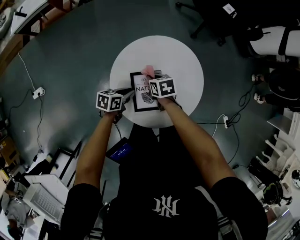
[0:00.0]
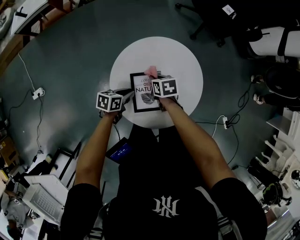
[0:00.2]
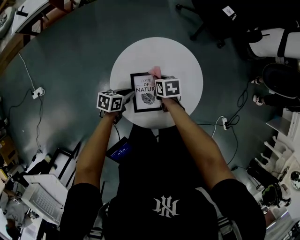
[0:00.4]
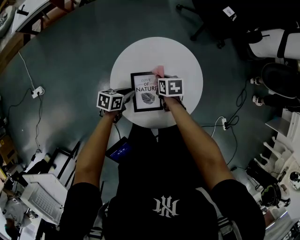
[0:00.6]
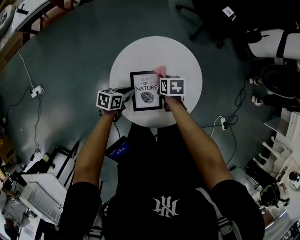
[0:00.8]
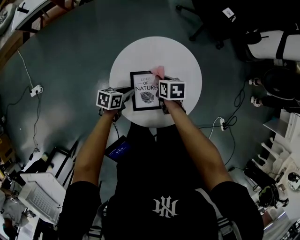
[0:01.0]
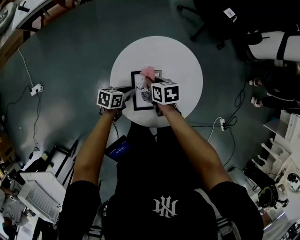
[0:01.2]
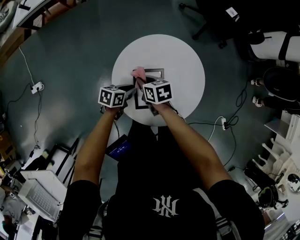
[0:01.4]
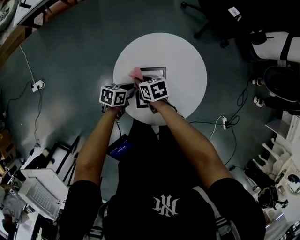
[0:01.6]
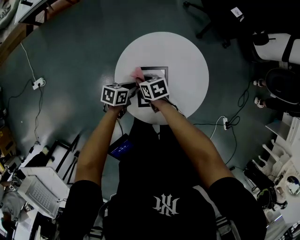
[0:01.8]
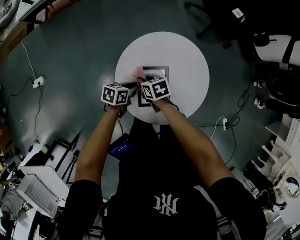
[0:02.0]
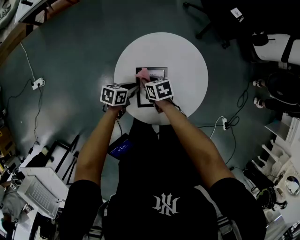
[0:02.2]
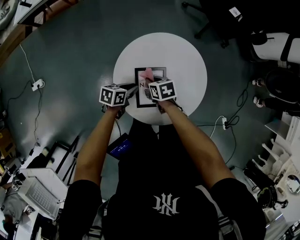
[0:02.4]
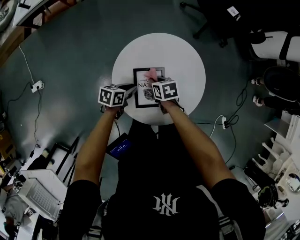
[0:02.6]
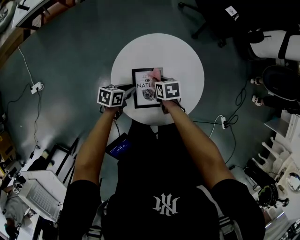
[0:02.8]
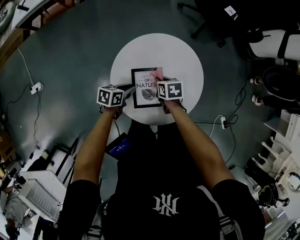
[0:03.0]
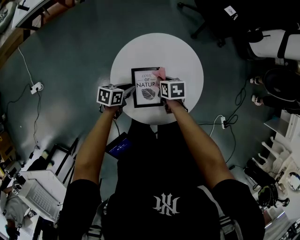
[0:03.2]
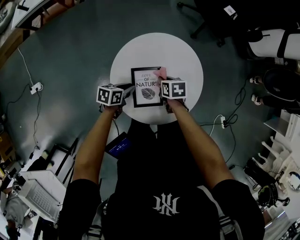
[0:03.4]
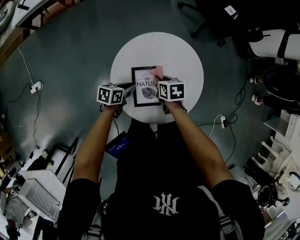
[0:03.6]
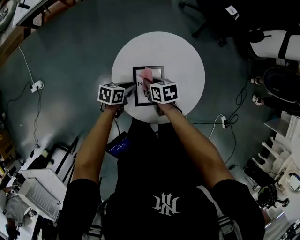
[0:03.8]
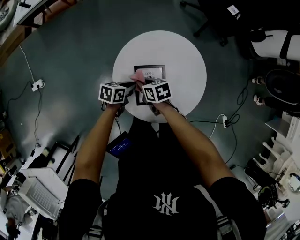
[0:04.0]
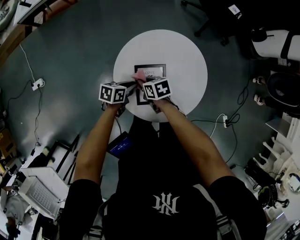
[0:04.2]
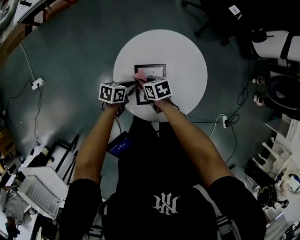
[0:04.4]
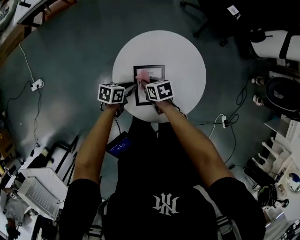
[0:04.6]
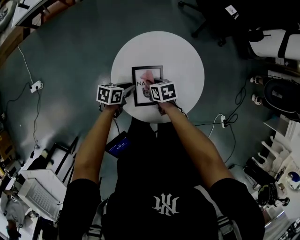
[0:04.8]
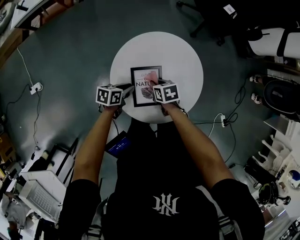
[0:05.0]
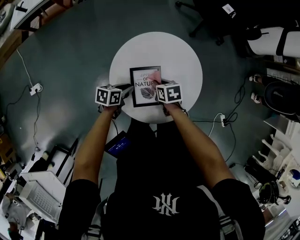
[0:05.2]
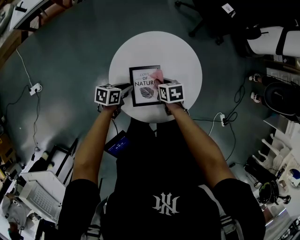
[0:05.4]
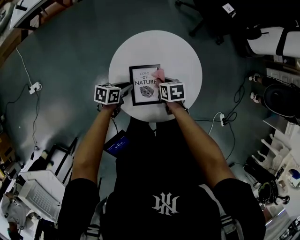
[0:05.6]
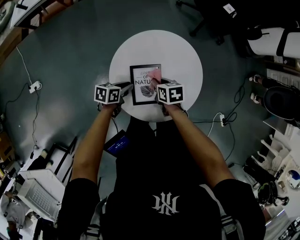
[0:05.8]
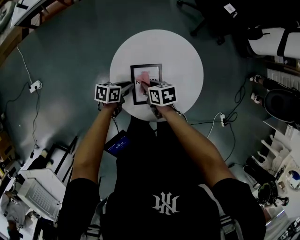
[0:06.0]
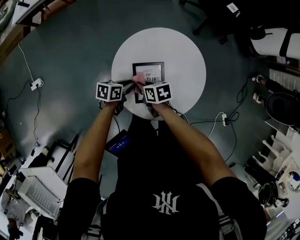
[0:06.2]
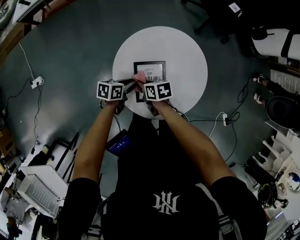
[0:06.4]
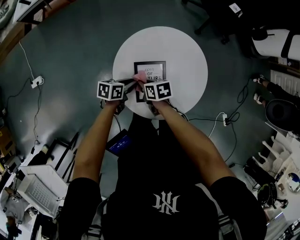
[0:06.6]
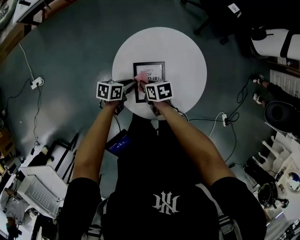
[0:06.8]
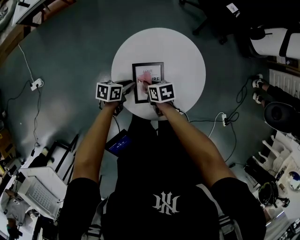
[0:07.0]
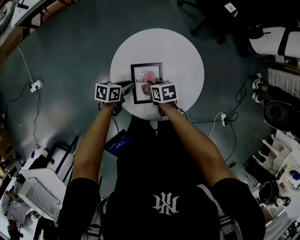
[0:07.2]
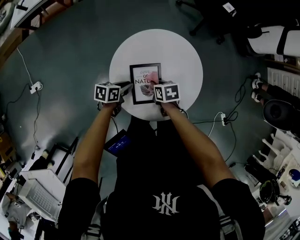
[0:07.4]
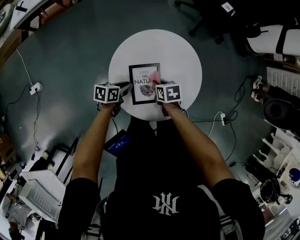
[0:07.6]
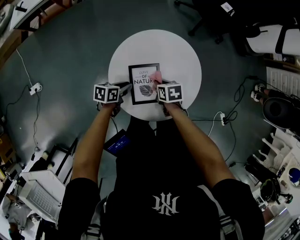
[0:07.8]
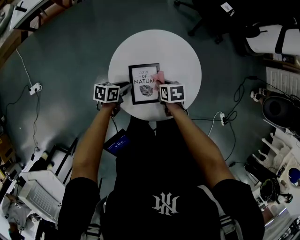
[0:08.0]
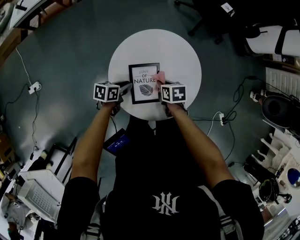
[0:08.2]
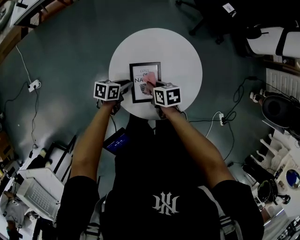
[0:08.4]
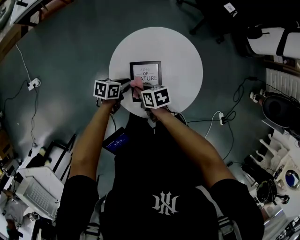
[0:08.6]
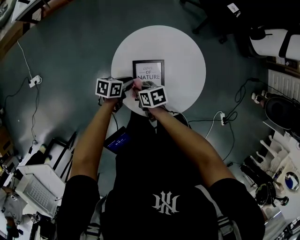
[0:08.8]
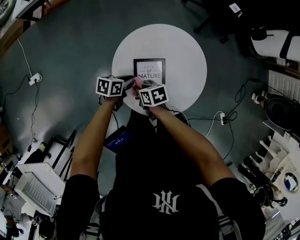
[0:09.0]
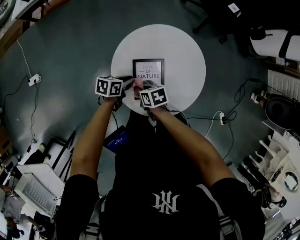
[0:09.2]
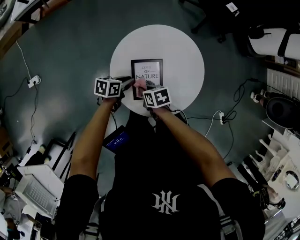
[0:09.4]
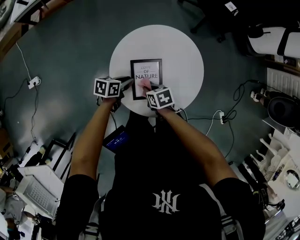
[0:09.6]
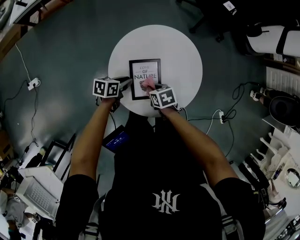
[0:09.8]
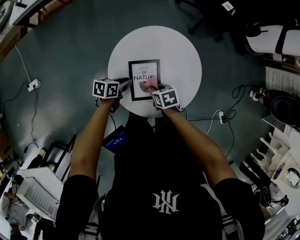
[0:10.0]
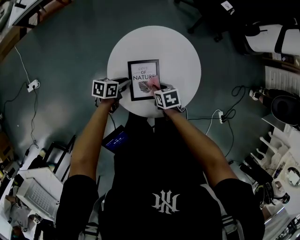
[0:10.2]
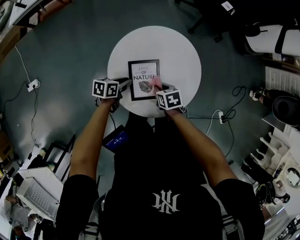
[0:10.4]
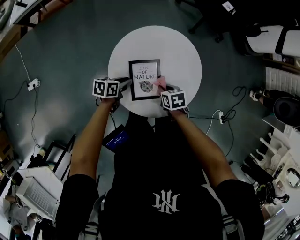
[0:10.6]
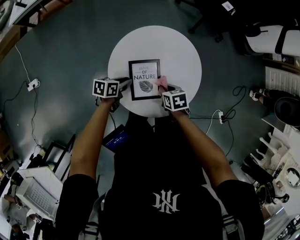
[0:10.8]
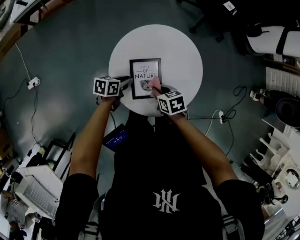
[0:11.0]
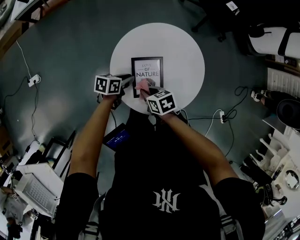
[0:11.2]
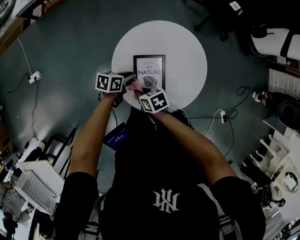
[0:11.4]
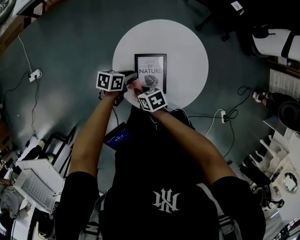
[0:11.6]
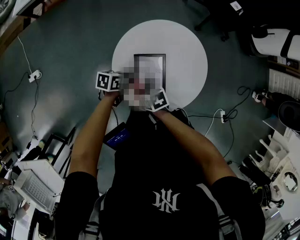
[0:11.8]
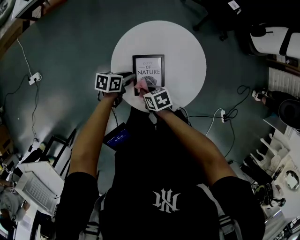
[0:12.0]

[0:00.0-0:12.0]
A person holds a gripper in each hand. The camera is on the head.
0:00.0 to 0:01.6: The right gripper ends up roughly 10 cm from where it was.
0:01.6 to 0:03.0: The right gripper ends up roughly 10 cm from where it was.
0:03.0 to 0:04.4: The right gripper moves approximately 10 cm.
0:06.0 to 0:07.6: The right gripper changes place by approximately 5 cm.
0:07.6 to 0:09.0: The right gripper changes place by some 10 cm.
0:09.0 to 0:10.4: The right gripper changes place by approximately 15 cm.
0:10.4 to 0:12.0: The right gripper shifts by some 10 cm.

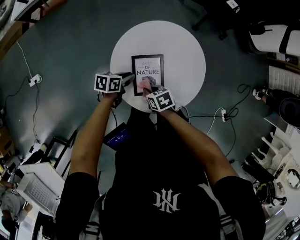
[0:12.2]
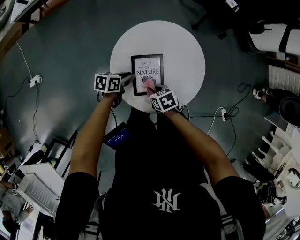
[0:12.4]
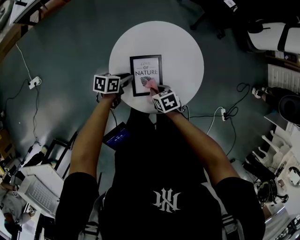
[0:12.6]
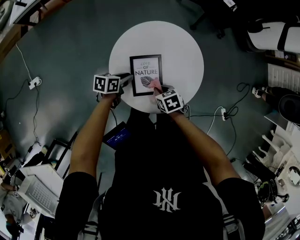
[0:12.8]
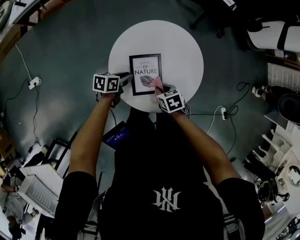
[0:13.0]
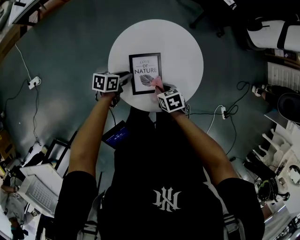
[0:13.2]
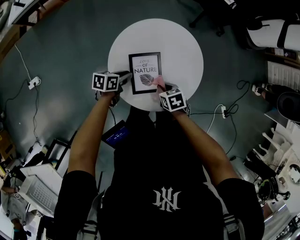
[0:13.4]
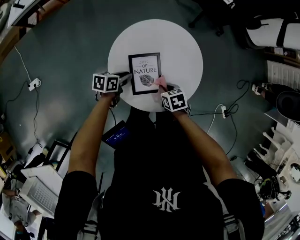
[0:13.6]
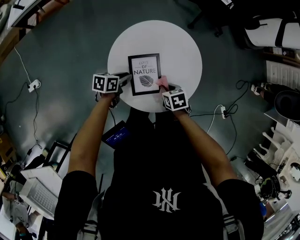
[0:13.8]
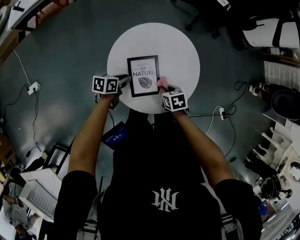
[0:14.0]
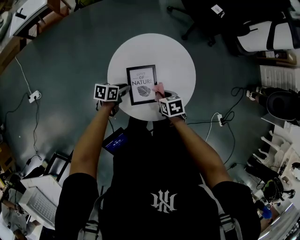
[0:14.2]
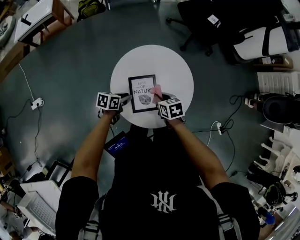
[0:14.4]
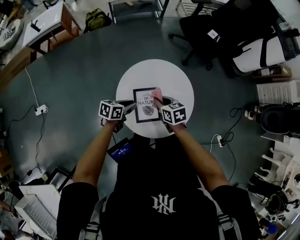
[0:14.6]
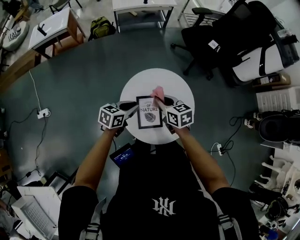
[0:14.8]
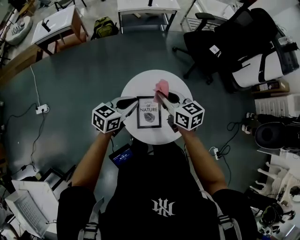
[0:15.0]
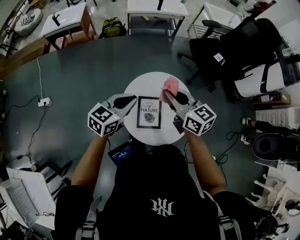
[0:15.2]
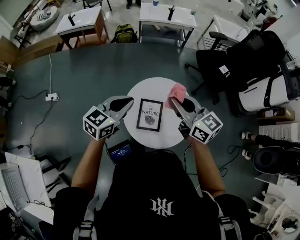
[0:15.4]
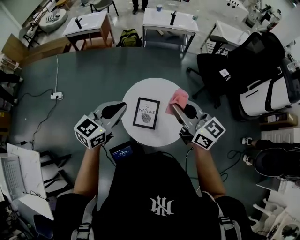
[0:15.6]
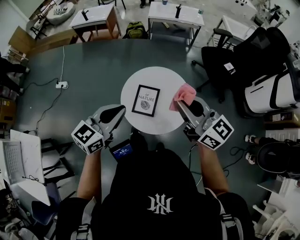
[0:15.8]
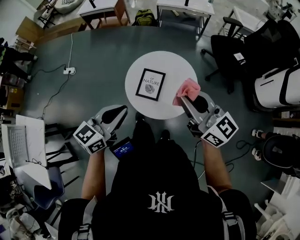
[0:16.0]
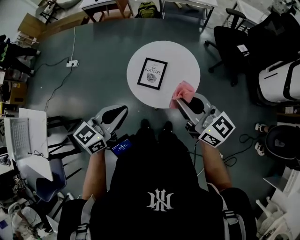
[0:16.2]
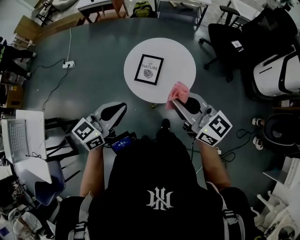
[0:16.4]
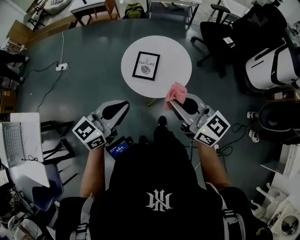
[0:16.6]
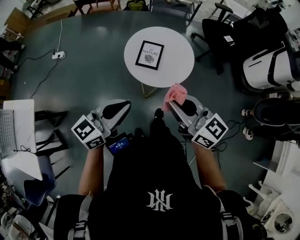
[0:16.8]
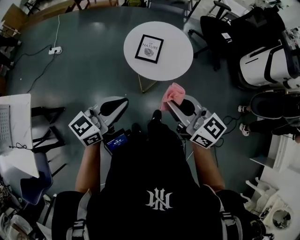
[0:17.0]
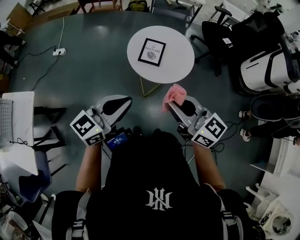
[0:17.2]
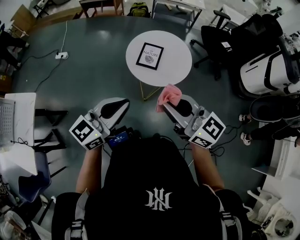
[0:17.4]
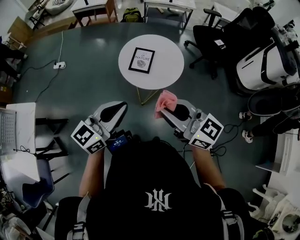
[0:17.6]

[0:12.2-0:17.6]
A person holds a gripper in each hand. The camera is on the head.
0:12.2 to 0:13.6: The right gripper ends up about 10 cm from where it was.
0:13.6 to 0:15.0: Both grippers travel together upward, roughly 30 cm. The right gripper angles its fingers upward, by roughly 40 degrees. Meanwhile the left gripper changes its angle by roughly 40 degrees.
0:15.0 to 0:16.2: The left gripper ends up about 35 cm from where it was, and swivels about 30 degrees, while the right gripper changes place by roughly 35 cm, and rotates some 40 degrees.
0:16.2 to 0:17.6: Both grippers travel together backward, approximately 20 cm.

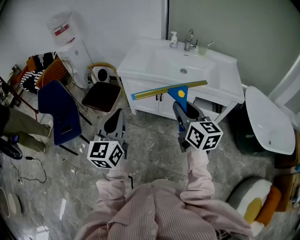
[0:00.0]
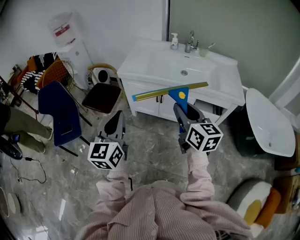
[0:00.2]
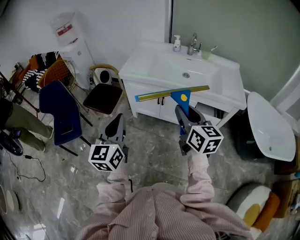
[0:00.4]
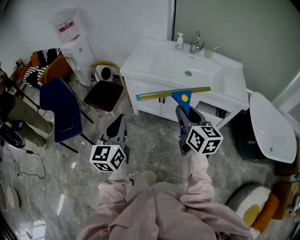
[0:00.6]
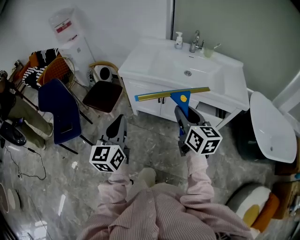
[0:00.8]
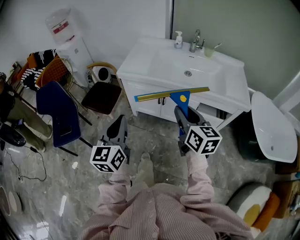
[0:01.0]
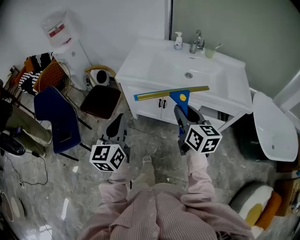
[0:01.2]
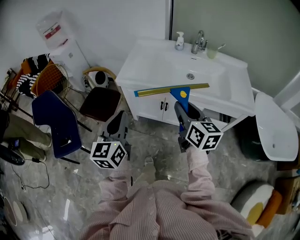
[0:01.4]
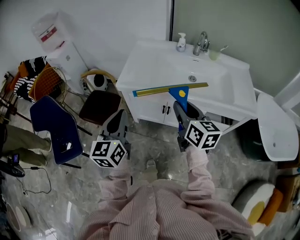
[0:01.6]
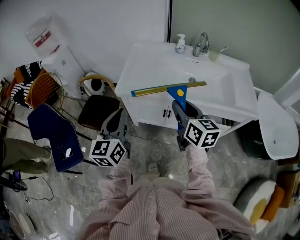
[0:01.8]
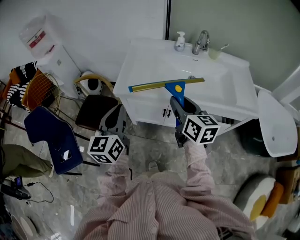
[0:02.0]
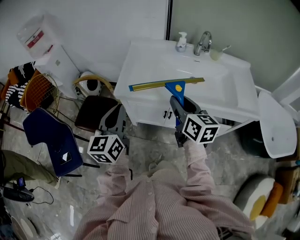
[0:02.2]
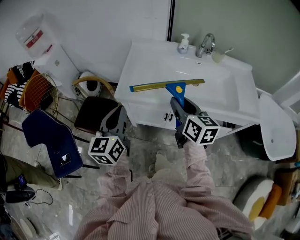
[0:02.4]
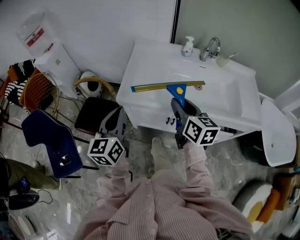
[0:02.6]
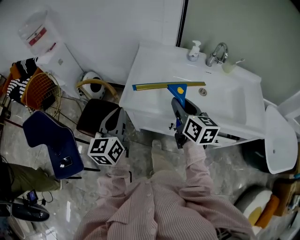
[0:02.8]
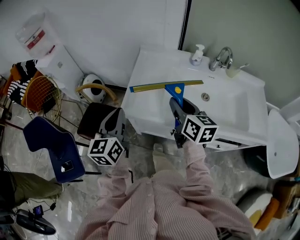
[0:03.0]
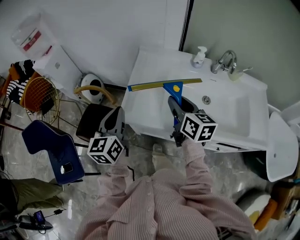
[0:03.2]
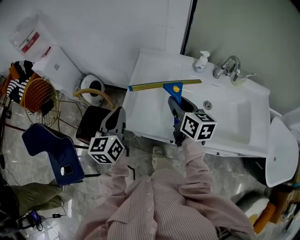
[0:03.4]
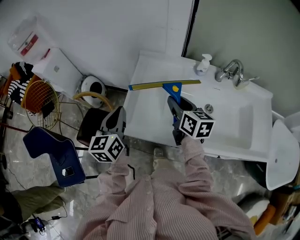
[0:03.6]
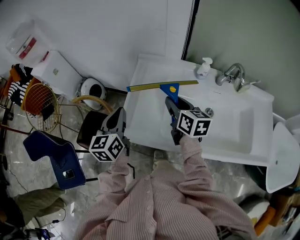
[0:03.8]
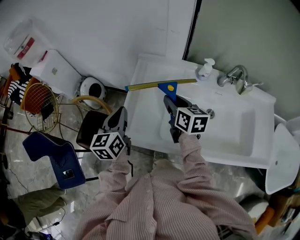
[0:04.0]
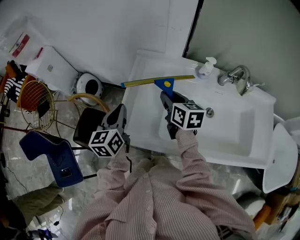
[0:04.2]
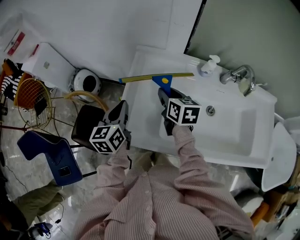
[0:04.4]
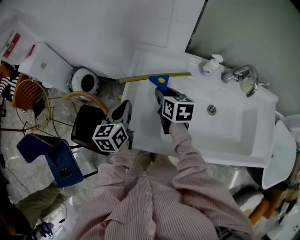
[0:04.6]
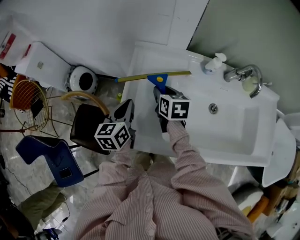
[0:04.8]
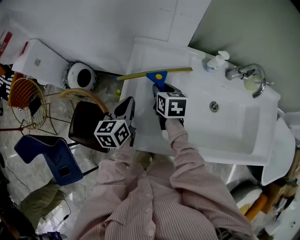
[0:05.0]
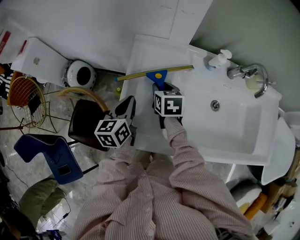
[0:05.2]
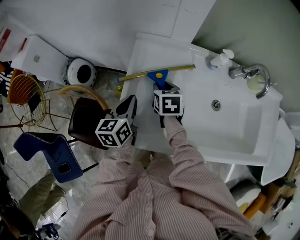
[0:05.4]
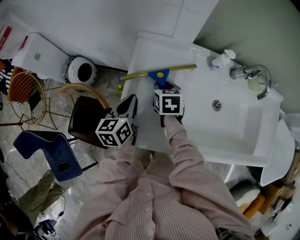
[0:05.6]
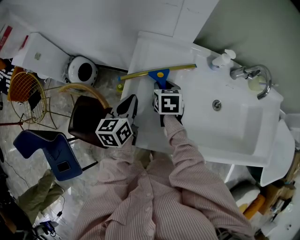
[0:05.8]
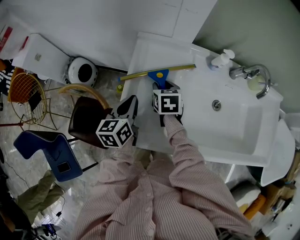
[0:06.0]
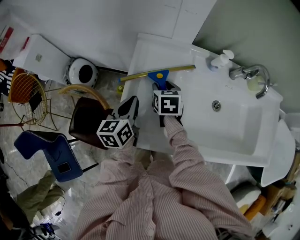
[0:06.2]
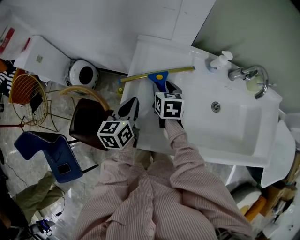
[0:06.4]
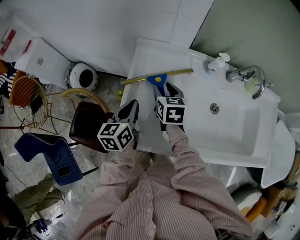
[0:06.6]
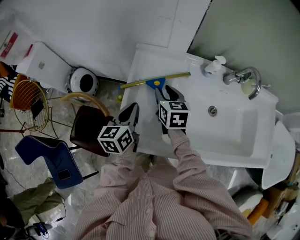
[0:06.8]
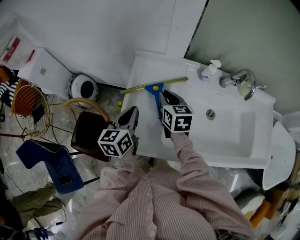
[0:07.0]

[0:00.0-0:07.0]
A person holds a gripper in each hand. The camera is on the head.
0:00.0 to 0:01.4: The grippers both shift forward by about 15 cm.
0:01.4 to 0:02.8: Both grippers move forward, some 25 cm.
0:02.8 to 0:04.2: Both grippers move forward, about 25 cm.
0:04.2 to 0:05.6: The two grippers go roughly 10 cm downward and forward. The right gripper swivels about 20 degrees.
0:05.6 to 0:07.0: The right gripper shifts approximately 10 cm upward.
